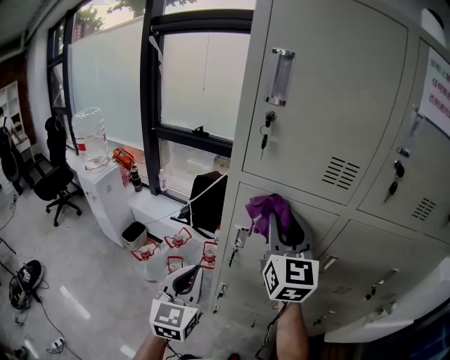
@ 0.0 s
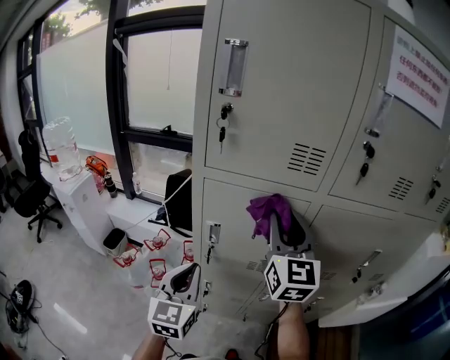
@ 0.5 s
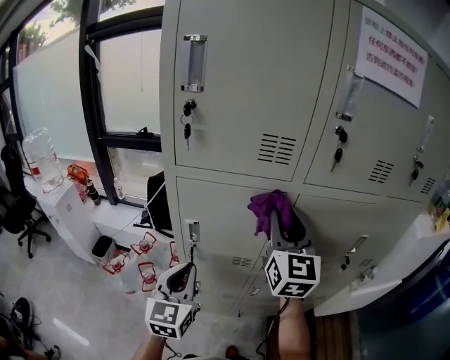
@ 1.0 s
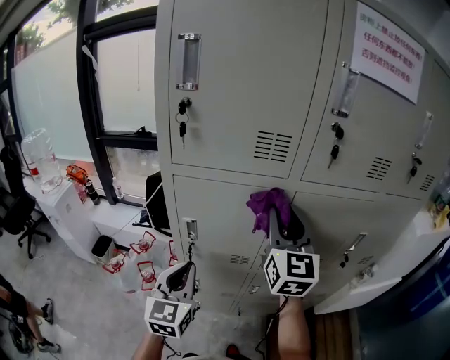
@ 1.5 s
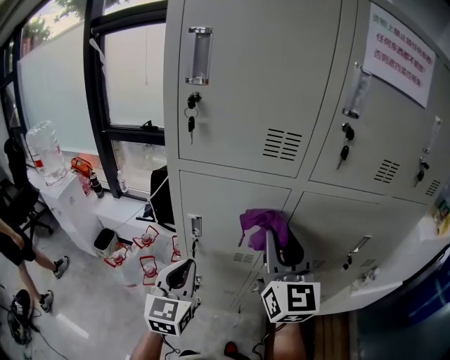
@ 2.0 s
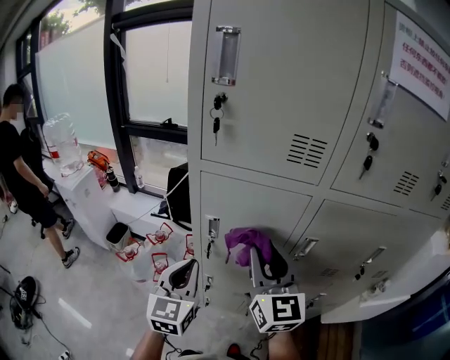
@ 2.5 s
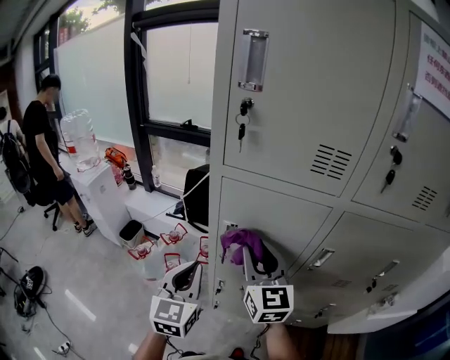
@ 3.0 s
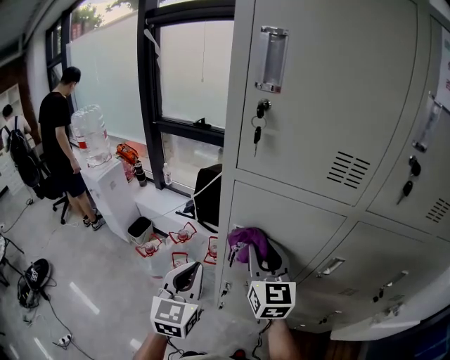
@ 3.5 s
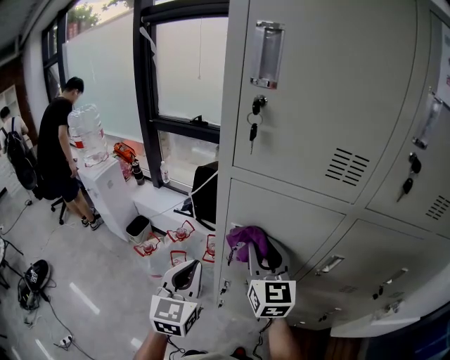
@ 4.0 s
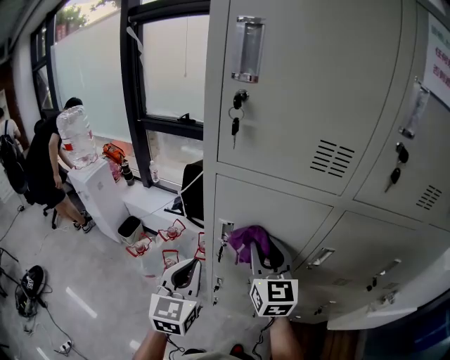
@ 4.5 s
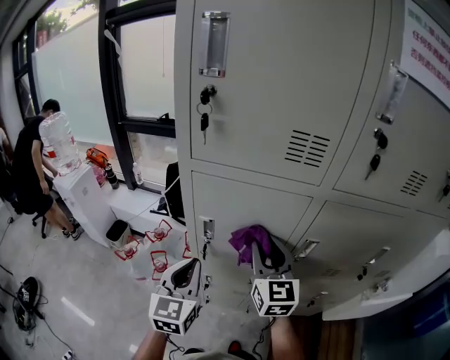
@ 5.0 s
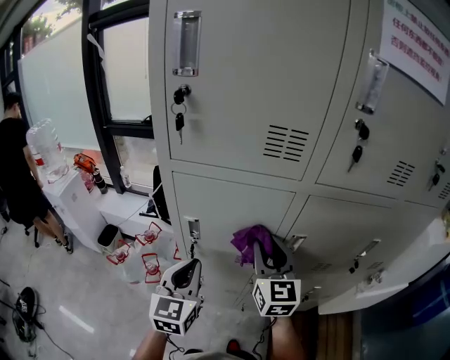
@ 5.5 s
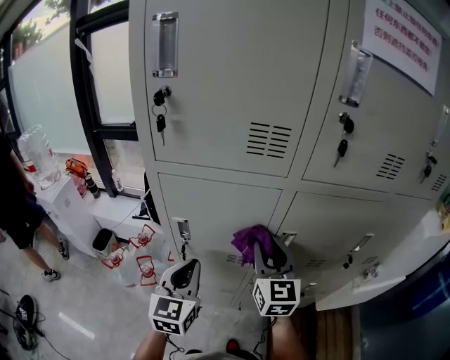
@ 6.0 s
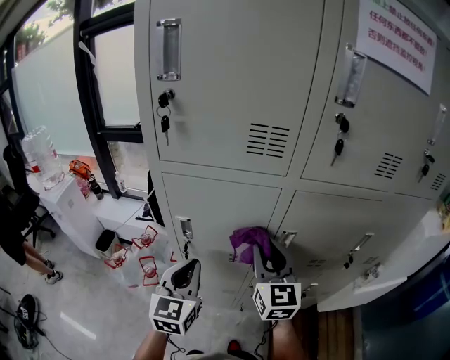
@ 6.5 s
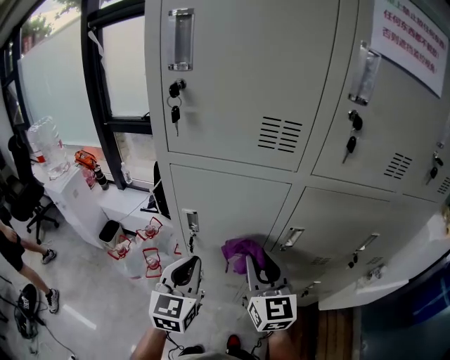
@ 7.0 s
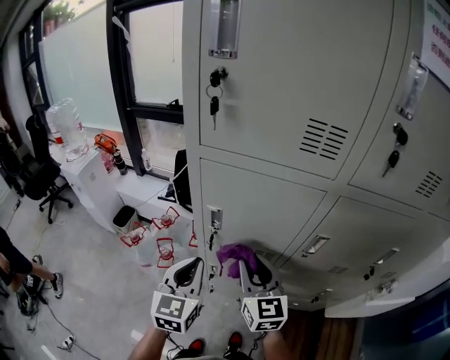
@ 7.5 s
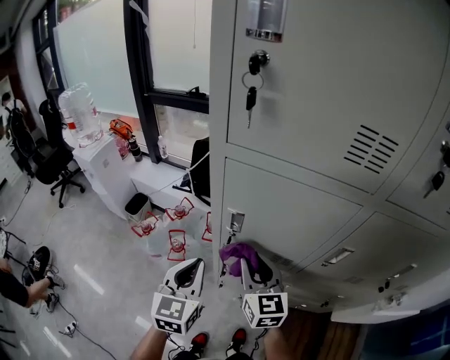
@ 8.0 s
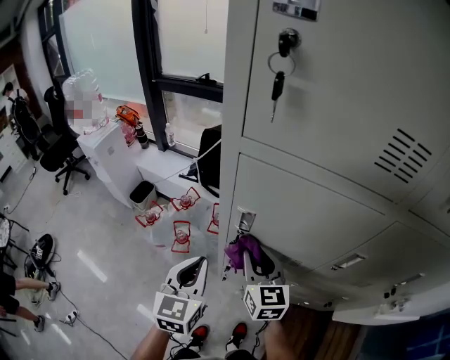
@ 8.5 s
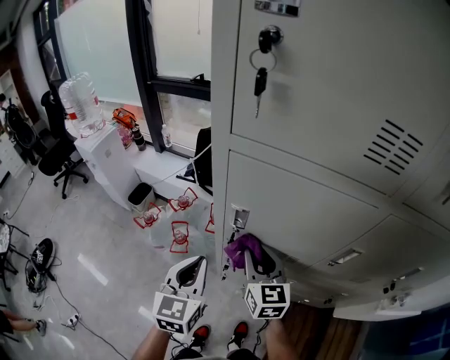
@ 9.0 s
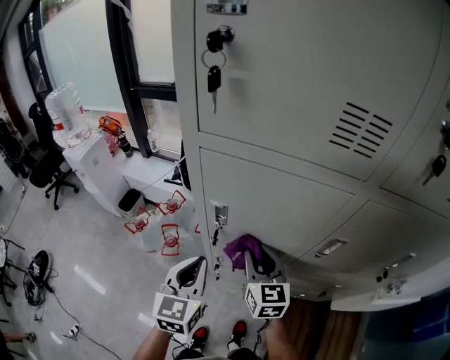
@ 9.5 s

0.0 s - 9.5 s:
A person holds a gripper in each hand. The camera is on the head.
0.0 s - 2.0 s: The left gripper is displaced to the right by approximately 10 cm. The right gripper heads to the right and backward, covering approximately 15 cm.
2.0 s - 4.0 s: The left gripper shifts roughly 10 cm to the left, while the right gripper heads to the left, downward and forward, covering about 20 cm.
4.0 s - 5.5 s: Both grippers travel together to the right, some 10 cm.
5.5 s - 7.5 s: The right gripper moves to the left and downward, roughly 10 cm.
7.5 s - 9.5 s: The right gripper goes about 10 cm downward and forward.

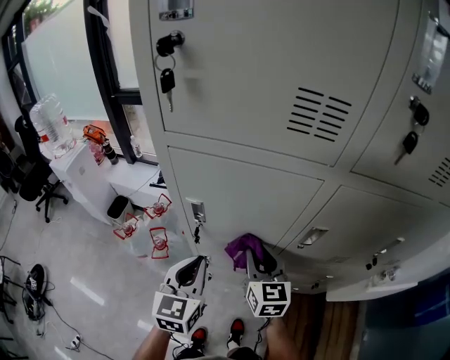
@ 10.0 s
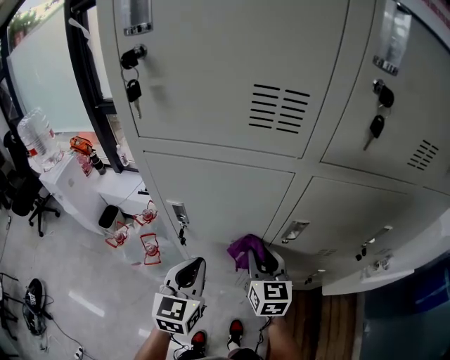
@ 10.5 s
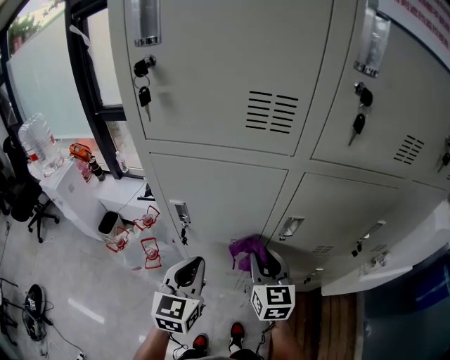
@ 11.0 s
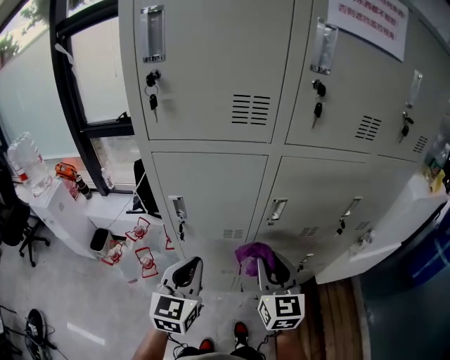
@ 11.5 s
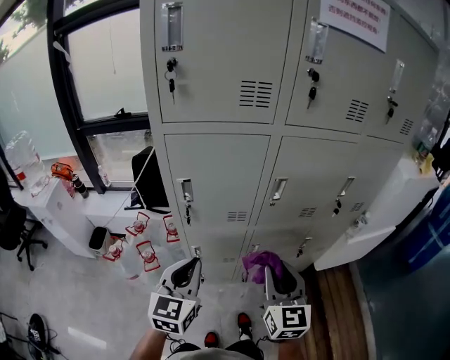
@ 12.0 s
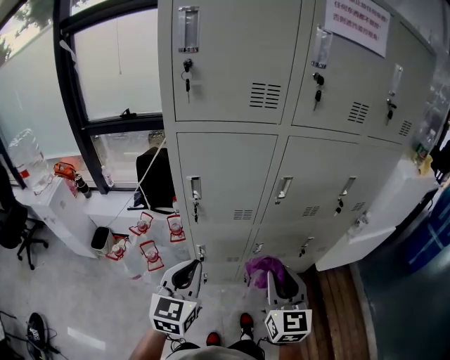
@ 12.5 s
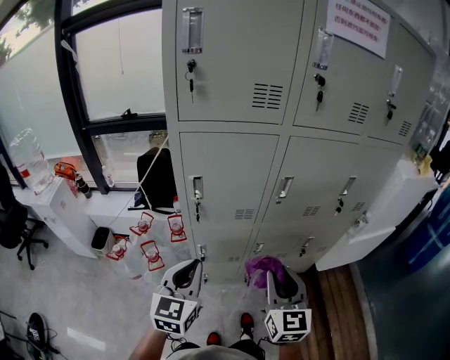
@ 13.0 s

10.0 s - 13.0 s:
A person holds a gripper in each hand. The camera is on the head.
10.0 s - 11.5 s: The left gripper travels backward by approximately 5 cm, while the right gripper shifts some 15 cm backward, upward and to the right.
11.5 s - 13.0 s: The two grippers go roughly 10 cm backward.

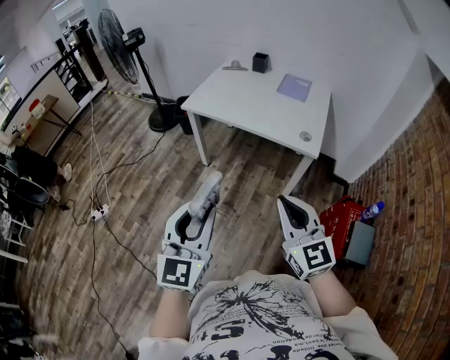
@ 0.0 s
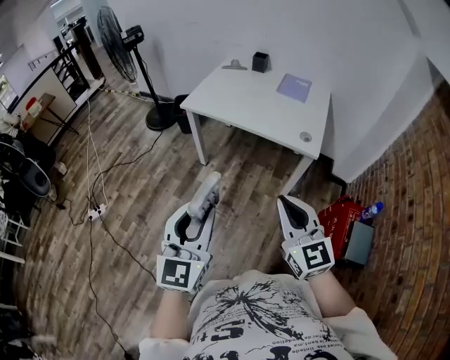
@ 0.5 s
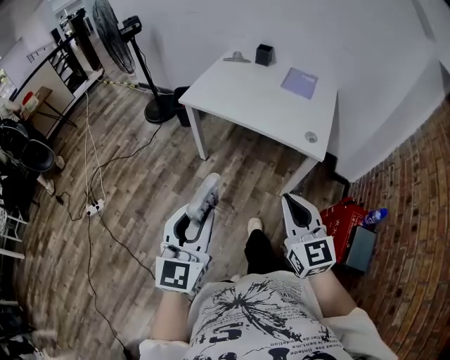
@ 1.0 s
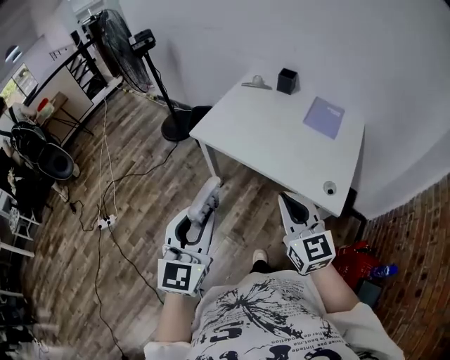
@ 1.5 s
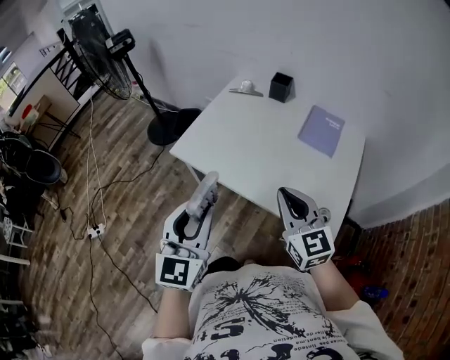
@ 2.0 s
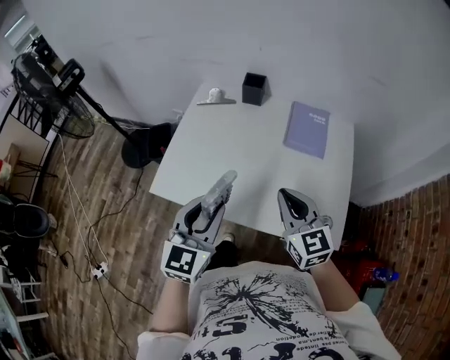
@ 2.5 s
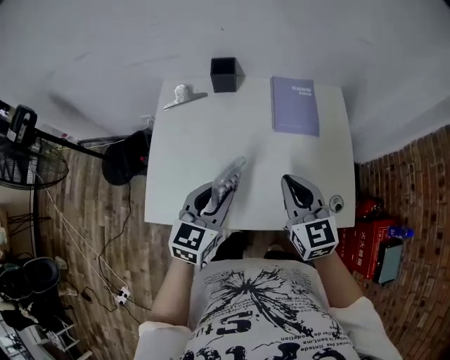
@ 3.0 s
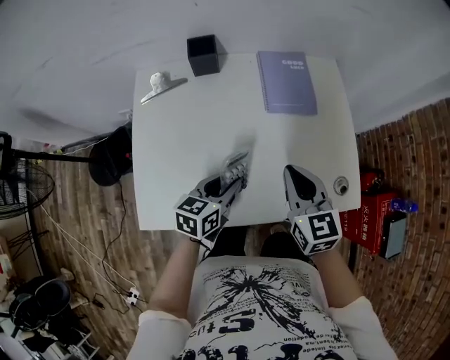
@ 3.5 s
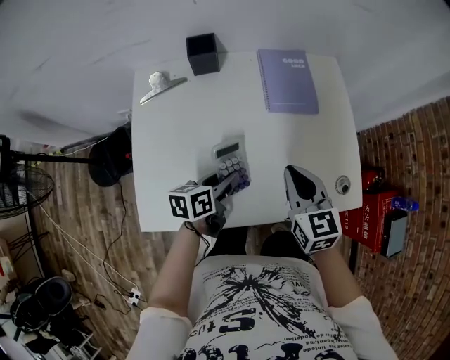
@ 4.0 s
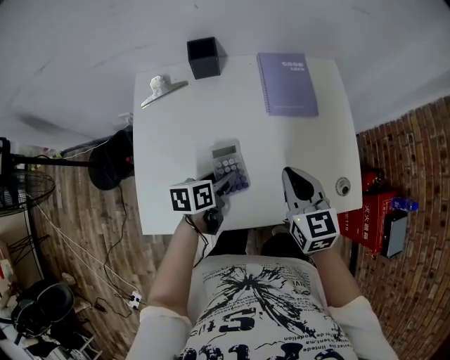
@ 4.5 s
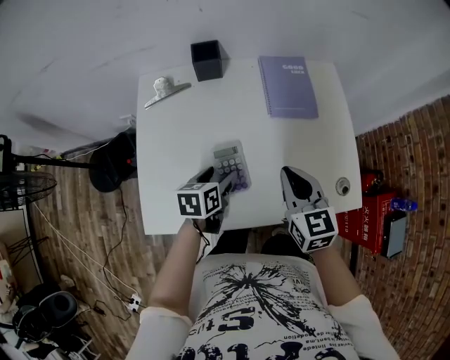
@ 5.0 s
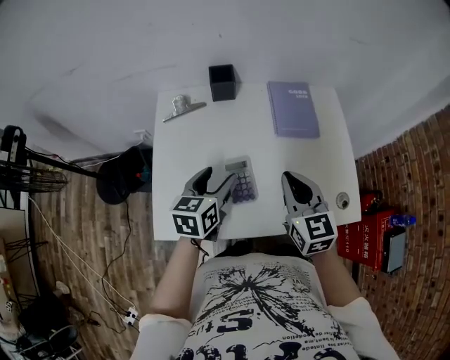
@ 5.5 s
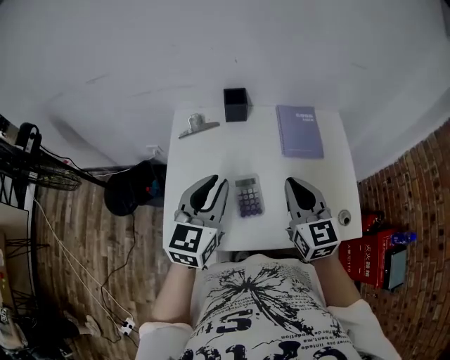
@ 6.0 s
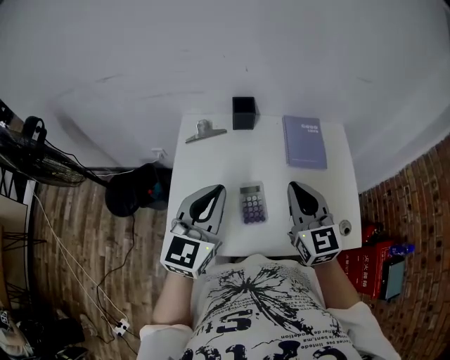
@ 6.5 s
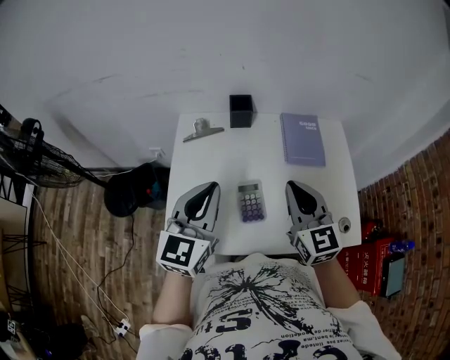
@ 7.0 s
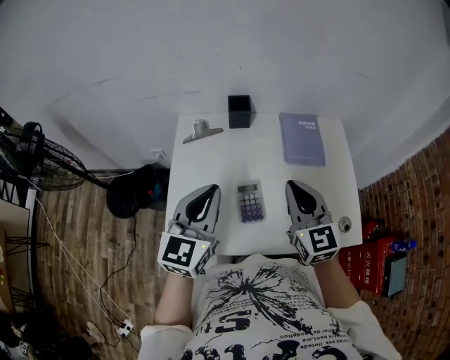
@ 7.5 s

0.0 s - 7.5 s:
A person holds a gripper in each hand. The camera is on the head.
0.0 s - 2.0 s: The pair of grippers is taken forward, about 50 cm.
2.0 s - 4.0 s: The right gripper moves some 25 cm, and changes its angle by about 40 degrees. The left gripper ends up about 50 cm from where it was, and changes its angle by approximately 80 degrees.
4.0 s - 5.5 s: The right gripper is displaced upward by some 5 cm; the left gripper travels upward and to the left by approximately 15 cm, changes its angle by about 30 degrees, and opens up.
5.5 s - 7.5 s: The left gripper heads upward, covering about 15 cm, turns by roughly 30 degrees, and closes its fingers. The right gripper goes about 5 cm upward.

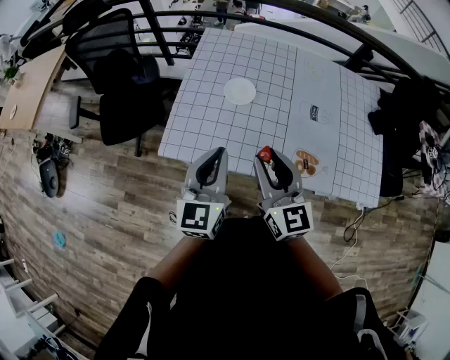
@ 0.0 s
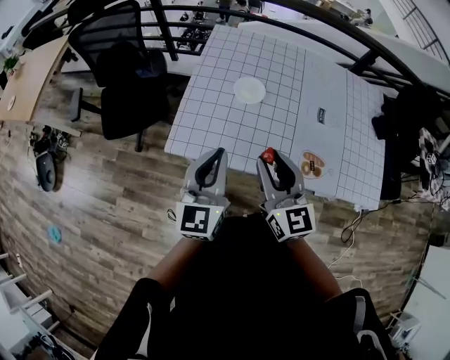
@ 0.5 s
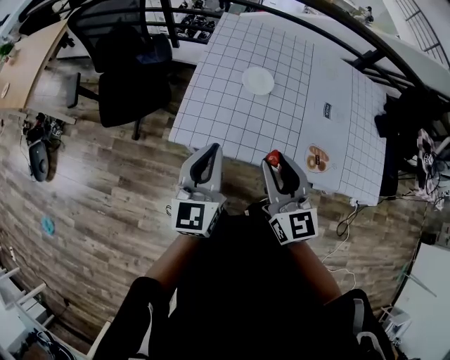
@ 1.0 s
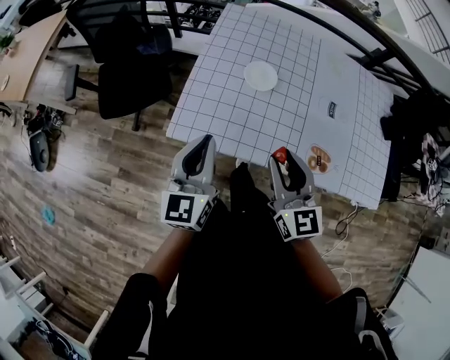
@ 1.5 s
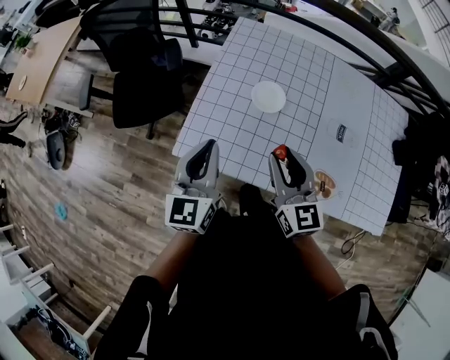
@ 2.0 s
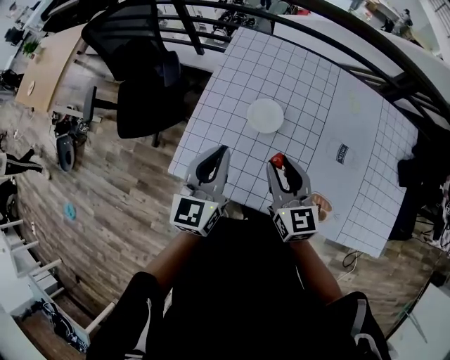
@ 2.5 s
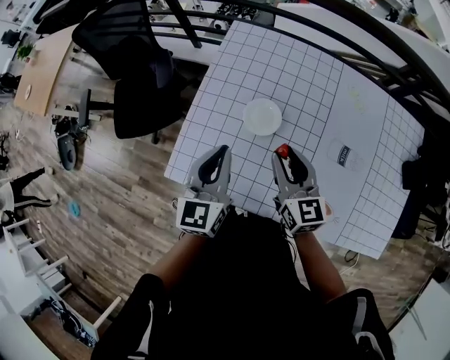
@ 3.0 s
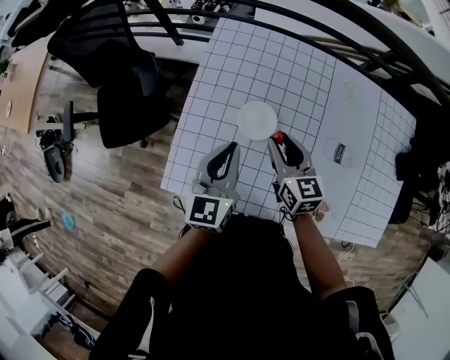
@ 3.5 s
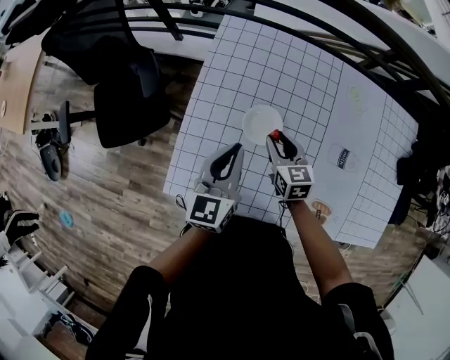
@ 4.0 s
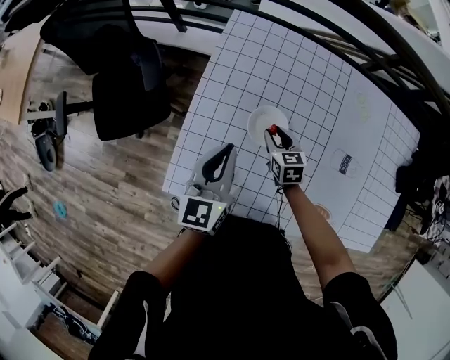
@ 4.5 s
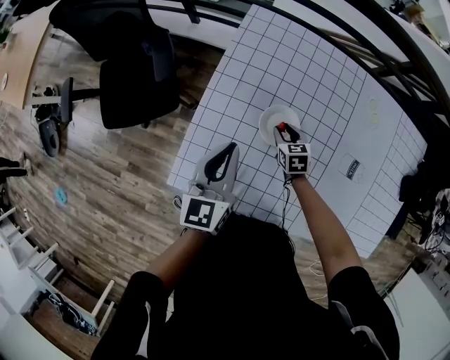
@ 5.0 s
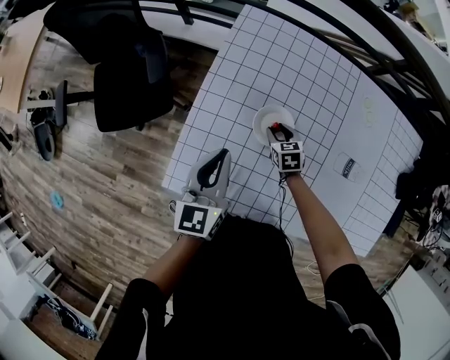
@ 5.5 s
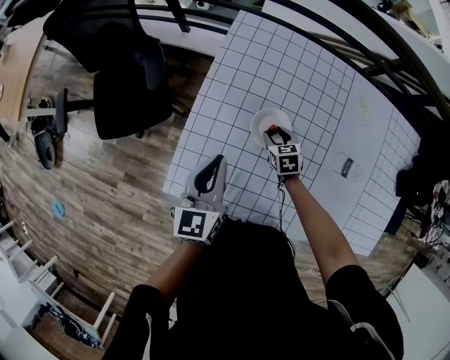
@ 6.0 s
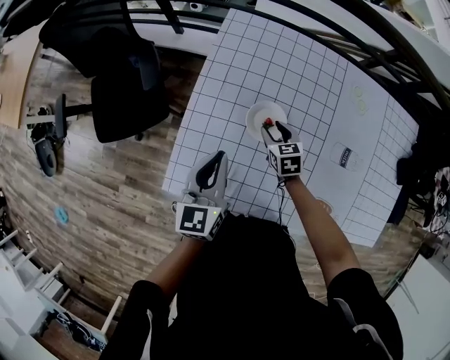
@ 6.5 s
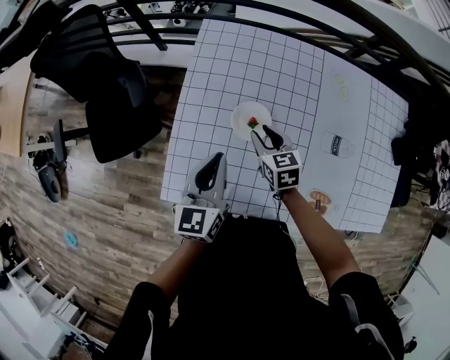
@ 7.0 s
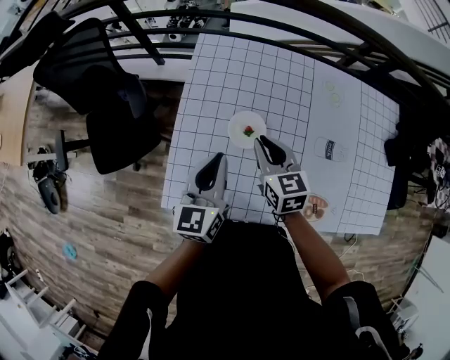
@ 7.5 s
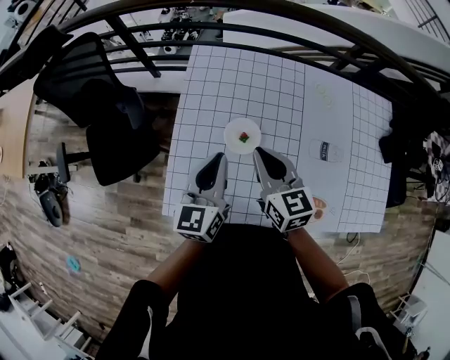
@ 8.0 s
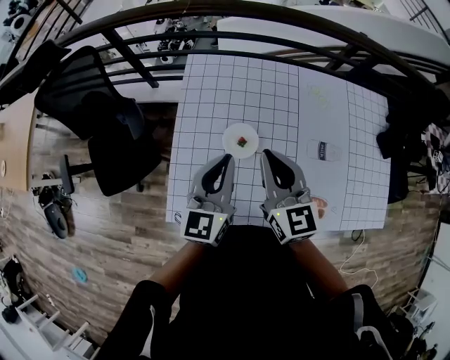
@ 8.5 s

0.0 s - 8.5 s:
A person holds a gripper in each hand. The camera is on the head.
0.0 s - 2.0 s: The left gripper heads forward and to the left, covering roughly 15 cm; the right gripper travels forward by some 10 cm.
2.0 s - 4.0 s: The right gripper moves forward and downward, some 30 cm, and changes its angle by roughly 30 degrees. The left gripper heads forward, to the right and downward, covering about 25 cm.
4.0 s - 6.5 s: The left gripper travels to the left by about 5 cm. The right gripper is displaced downward by approximately 10 cm.
6.5 s - 8.5 s: The left gripper is displaced upward and to the right by roughly 15 cm. The right gripper moves upward, some 30 cm, points its fingers about 40 degrees further upward, and closes its fingers.
